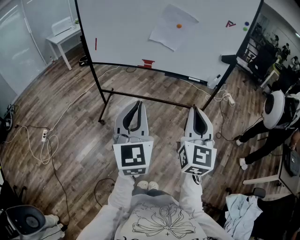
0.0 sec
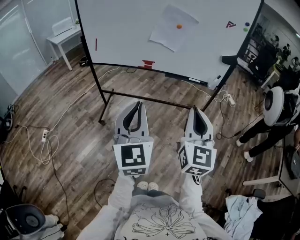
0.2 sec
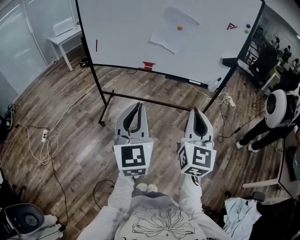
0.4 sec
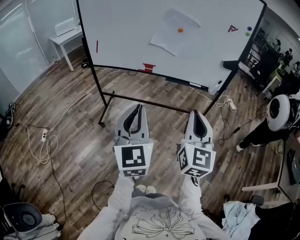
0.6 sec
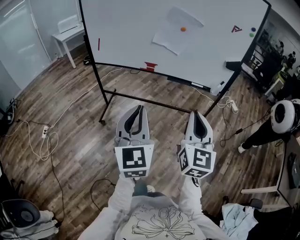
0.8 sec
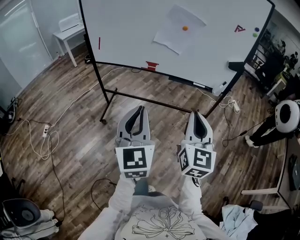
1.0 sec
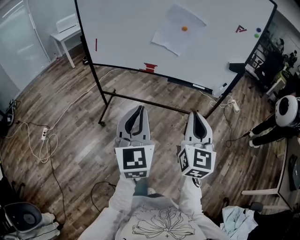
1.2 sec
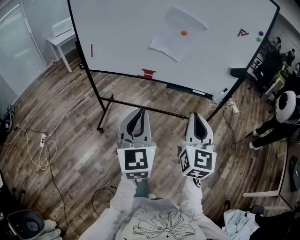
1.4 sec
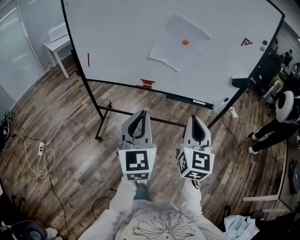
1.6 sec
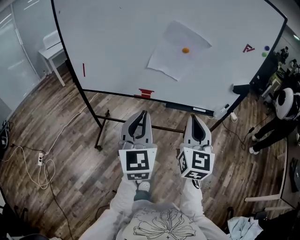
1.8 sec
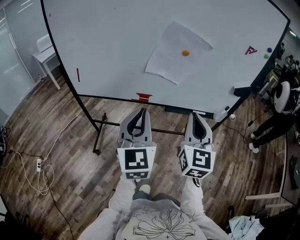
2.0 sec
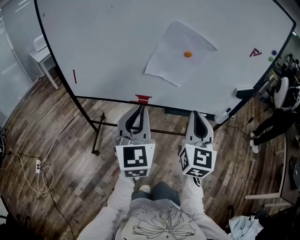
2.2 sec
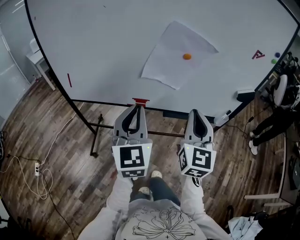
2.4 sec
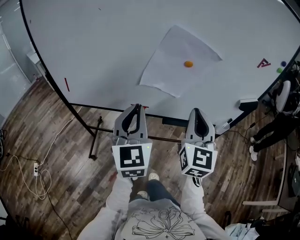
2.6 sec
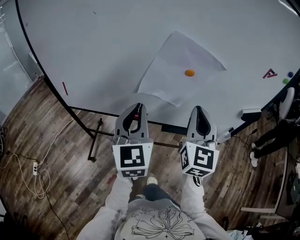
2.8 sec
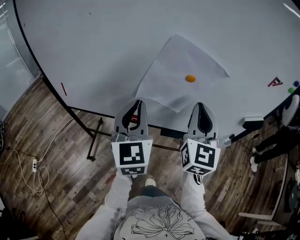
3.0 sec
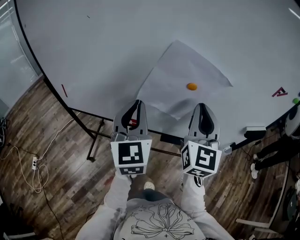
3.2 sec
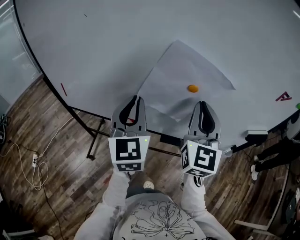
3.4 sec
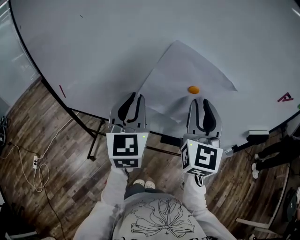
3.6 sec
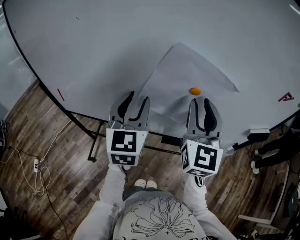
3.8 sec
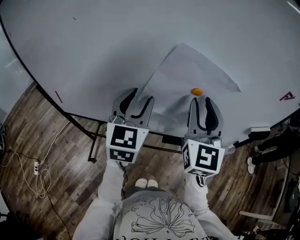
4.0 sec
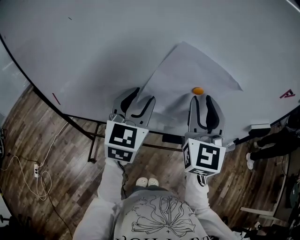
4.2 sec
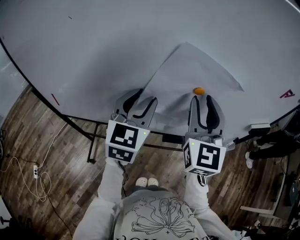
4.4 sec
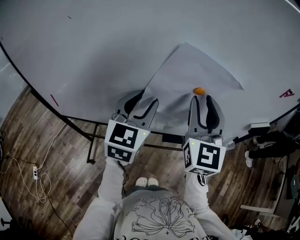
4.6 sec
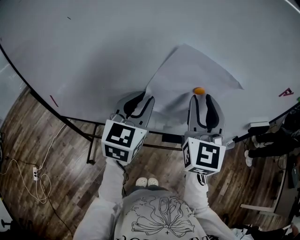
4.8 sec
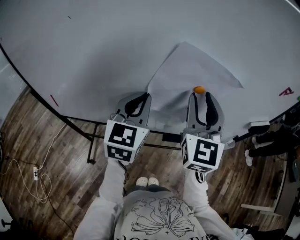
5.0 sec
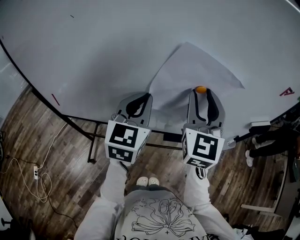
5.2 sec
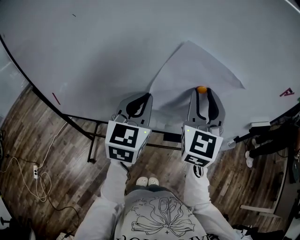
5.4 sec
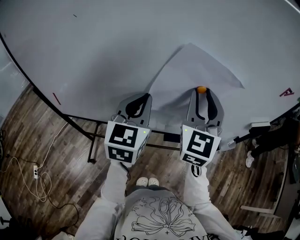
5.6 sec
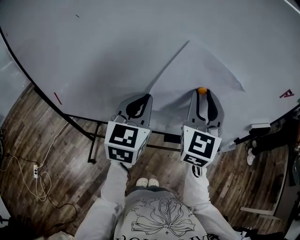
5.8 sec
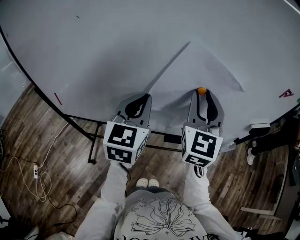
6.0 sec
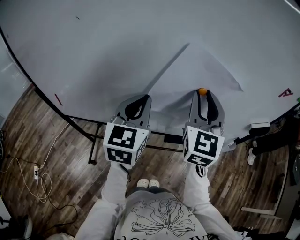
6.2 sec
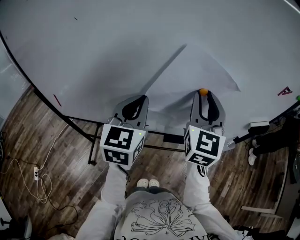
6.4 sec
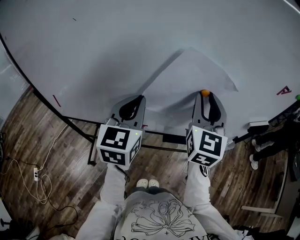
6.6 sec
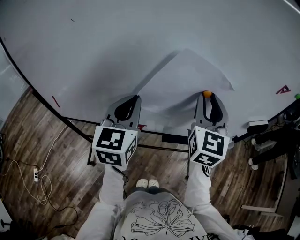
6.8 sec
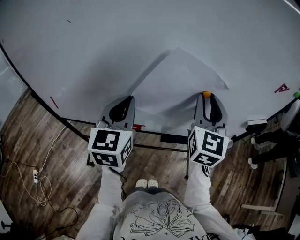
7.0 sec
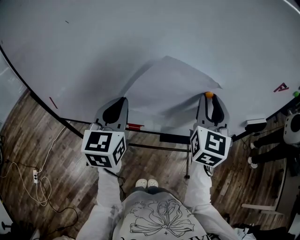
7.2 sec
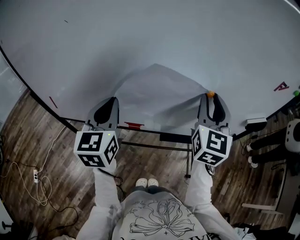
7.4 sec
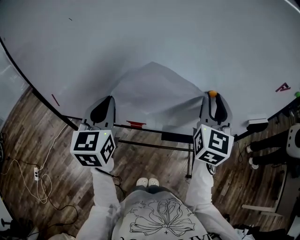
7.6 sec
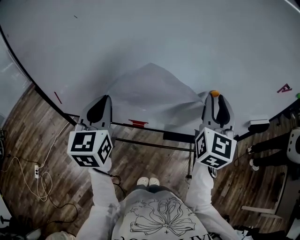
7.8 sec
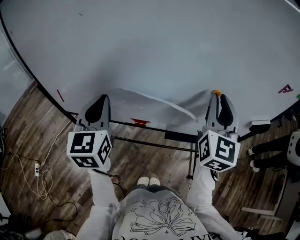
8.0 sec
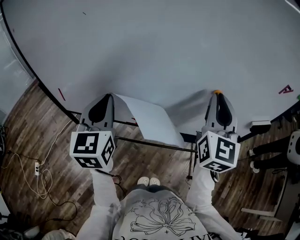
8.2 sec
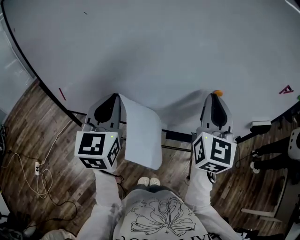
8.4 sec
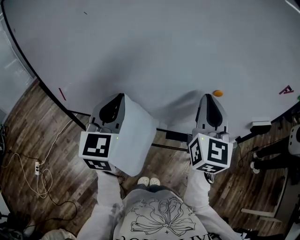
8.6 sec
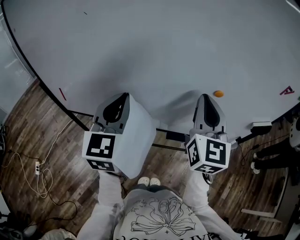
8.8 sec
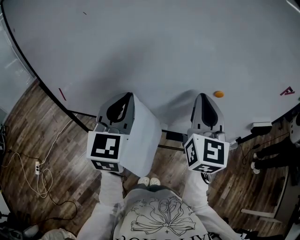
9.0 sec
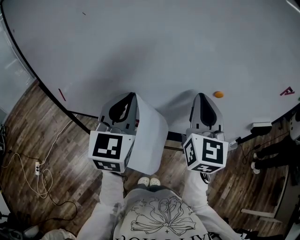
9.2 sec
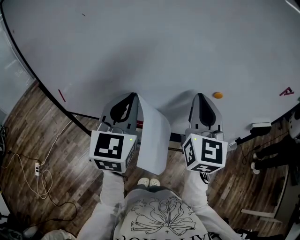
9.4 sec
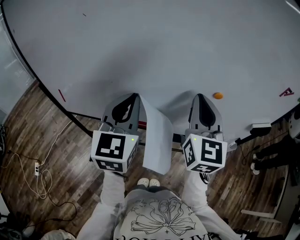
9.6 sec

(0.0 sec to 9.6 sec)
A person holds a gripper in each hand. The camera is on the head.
0.0 sec - 1.6 sec: Both grippers travel together forward, roughly 20 cm.
1.6 sec - 3.2 sec: Both grippers move forward, some 35 cm.
3.2 sec - 4.8 sec: The left gripper shifts some 10 cm forward, turns by roughly 30 degrees, and opens, then closes again. The right gripper changes place by roughly 5 cm, and opens its fingers.
4.8 sec - 6.4 sec: The grippers move only a little.
6.4 sec - 8.0 sec: The left gripper is displaced to the left by roughly 10 cm. The right gripper shifts by roughly 5 cm.
8.0 sec - 9.6 sec: The left gripper travels to the right by some 10 cm; the right gripper is displaced to the left by some 5 cm.

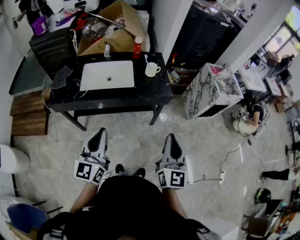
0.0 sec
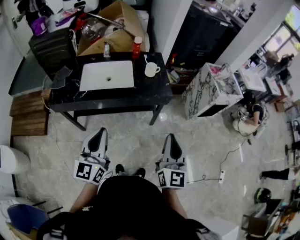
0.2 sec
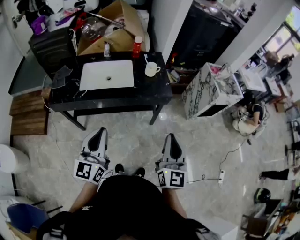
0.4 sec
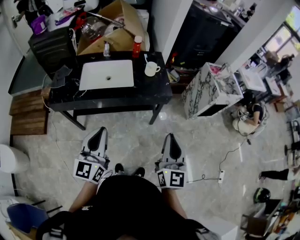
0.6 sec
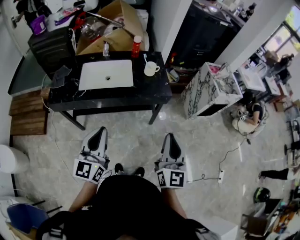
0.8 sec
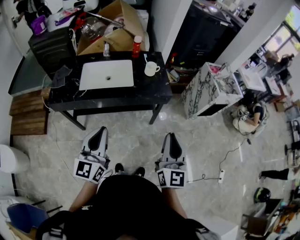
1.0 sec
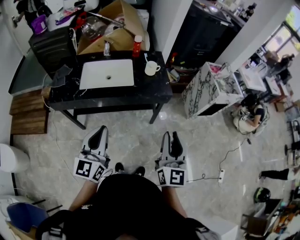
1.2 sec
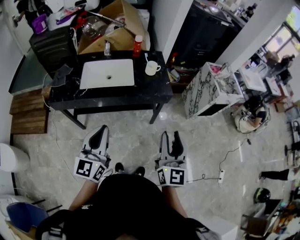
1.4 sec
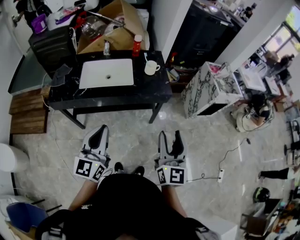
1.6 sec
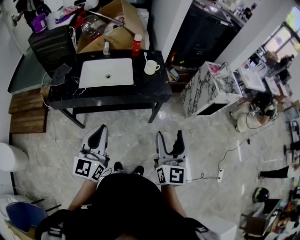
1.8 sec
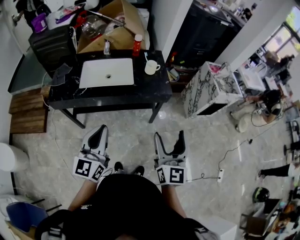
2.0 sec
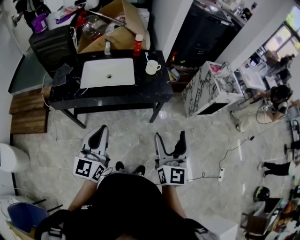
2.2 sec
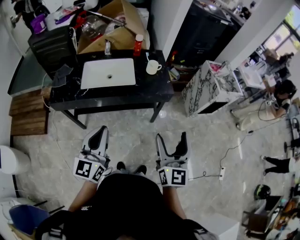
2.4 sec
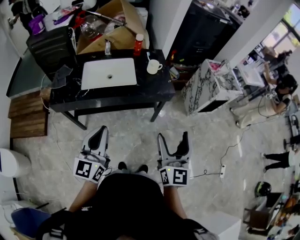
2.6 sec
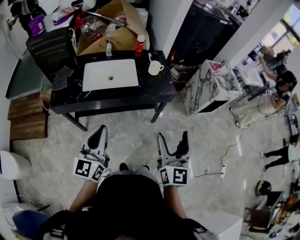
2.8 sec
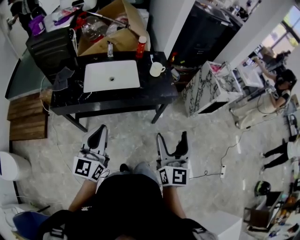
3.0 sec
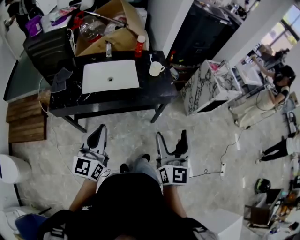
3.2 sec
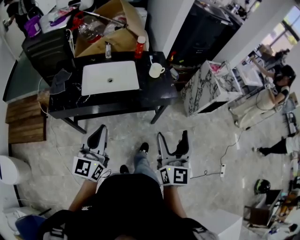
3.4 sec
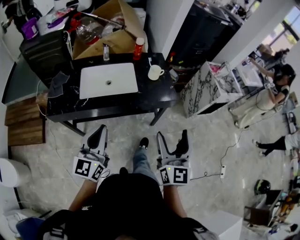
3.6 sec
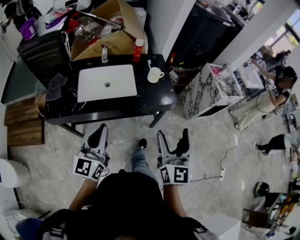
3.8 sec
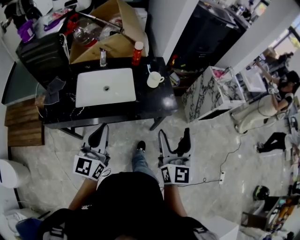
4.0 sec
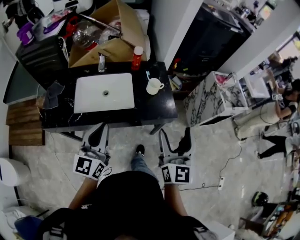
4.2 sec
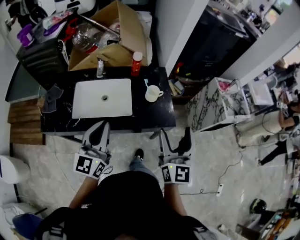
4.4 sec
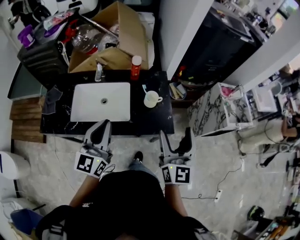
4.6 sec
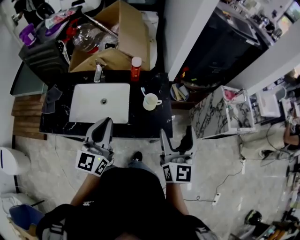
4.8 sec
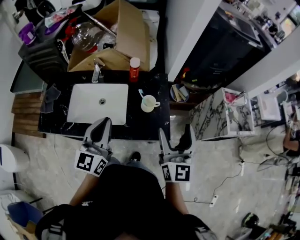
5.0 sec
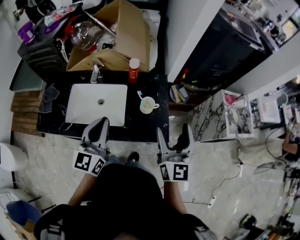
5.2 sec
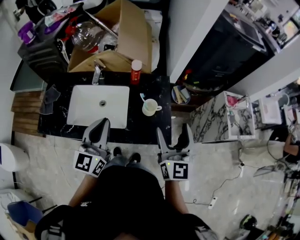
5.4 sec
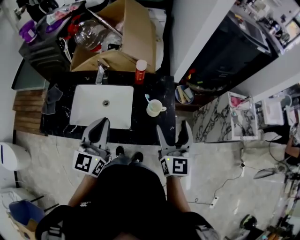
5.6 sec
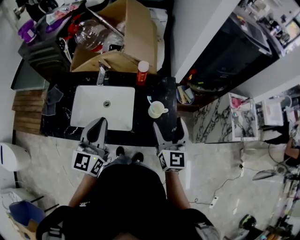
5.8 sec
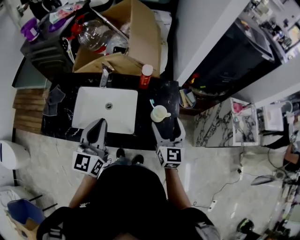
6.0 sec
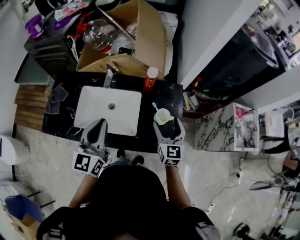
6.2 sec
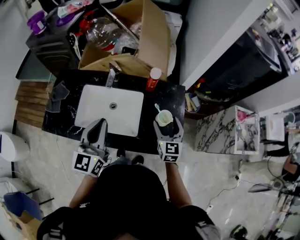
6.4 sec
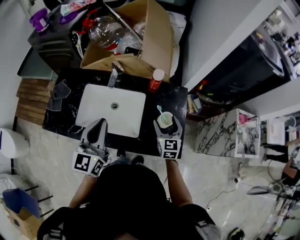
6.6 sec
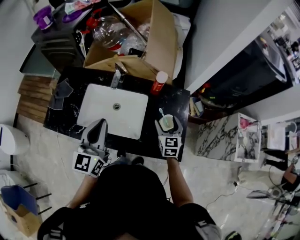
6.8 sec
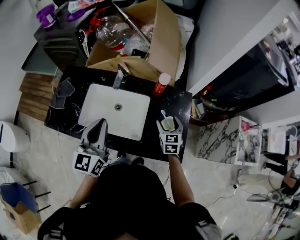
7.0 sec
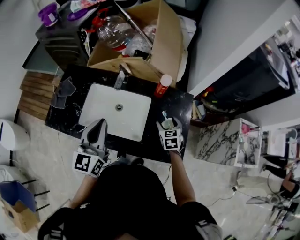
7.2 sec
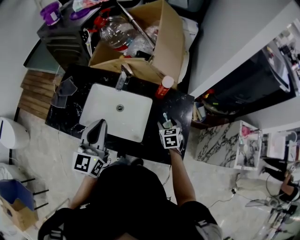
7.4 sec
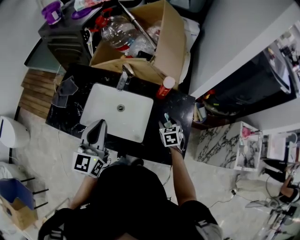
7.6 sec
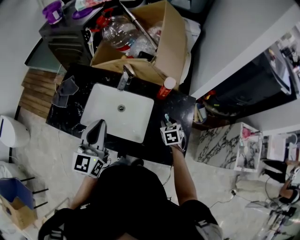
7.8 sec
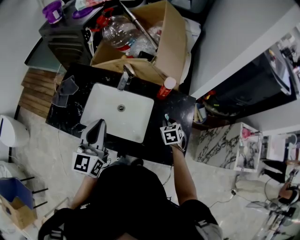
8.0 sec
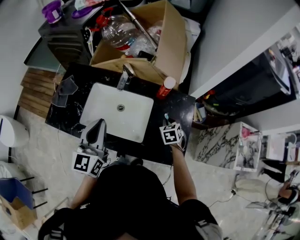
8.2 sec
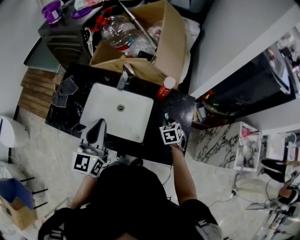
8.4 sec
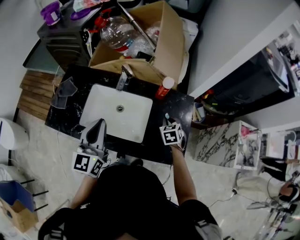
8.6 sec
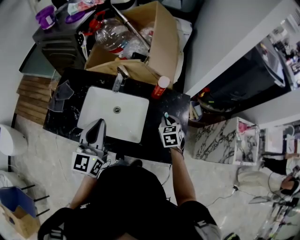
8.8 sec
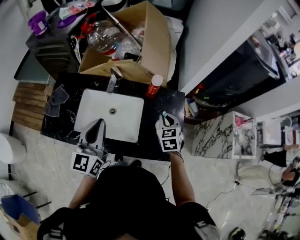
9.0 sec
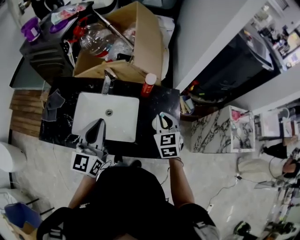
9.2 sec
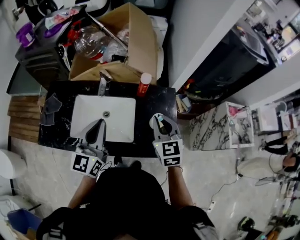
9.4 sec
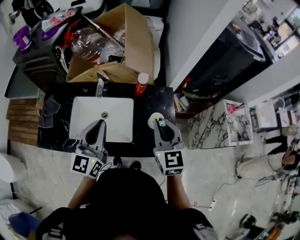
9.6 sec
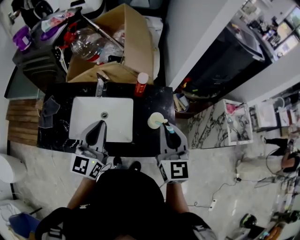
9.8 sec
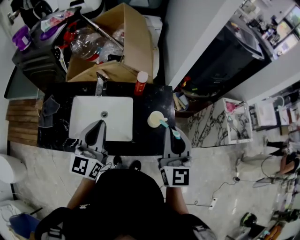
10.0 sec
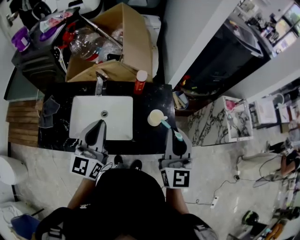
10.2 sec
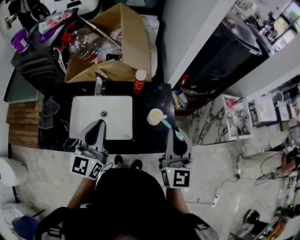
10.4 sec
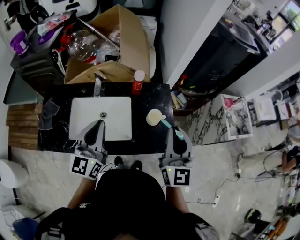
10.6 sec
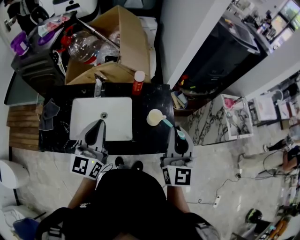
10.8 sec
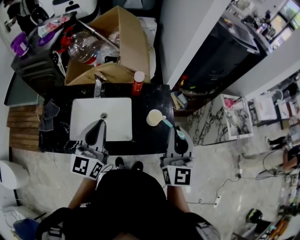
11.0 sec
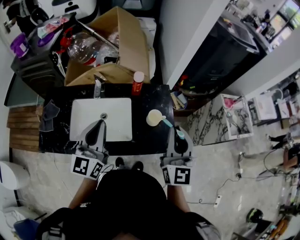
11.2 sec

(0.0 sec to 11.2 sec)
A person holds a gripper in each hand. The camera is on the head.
0.0 sec - 1.6 sec: The right gripper opens its fingers.
1.6 sec - 3.2 sec: The two grippers go some 10 cm to the left. The right gripper opens.
3.2 sec - 4.8 sec: The grippers both shift forward by roughly 35 cm.
4.8 sec - 6.4 sec: The left gripper shifts roughly 10 cm to the left and forward. Meanwhile the right gripper shifts roughly 25 cm forward, downward and to the left, and swivels about 30 degrees.
6.4 sec - 8.0 sec: The right gripper shifts some 15 cm downward and forward, tilts its fingers some 40 degrees downward, and closes. Meanwhile the left gripper changes place by roughly 5 cm.
8.0 sec - 9.6 sec: The right gripper is displaced upward by some 25 cm, and angles its fingers upward, by about 40 degrees; the left gripper goes about 5 cm to the right.
9.6 sec - 11.2 sec: The right gripper travels to the right and backward by roughly 10 cm, and changes its angle by about 20 degrees.

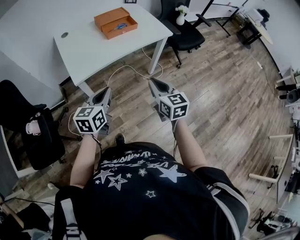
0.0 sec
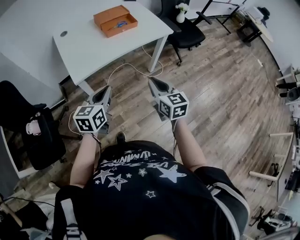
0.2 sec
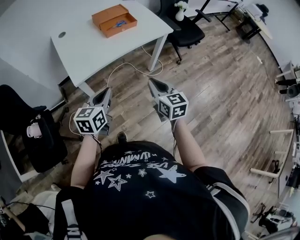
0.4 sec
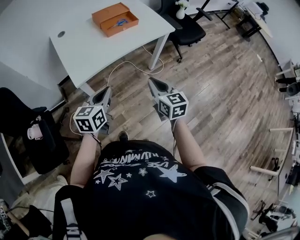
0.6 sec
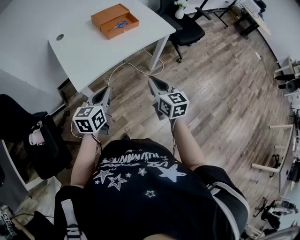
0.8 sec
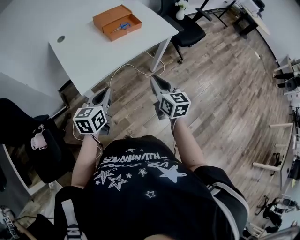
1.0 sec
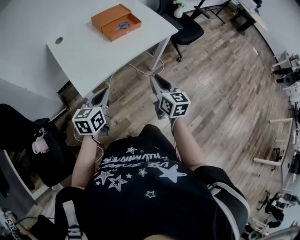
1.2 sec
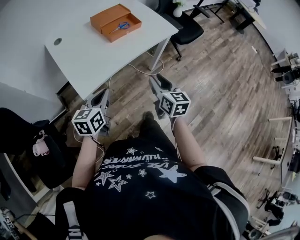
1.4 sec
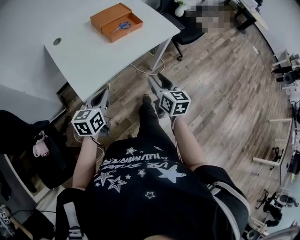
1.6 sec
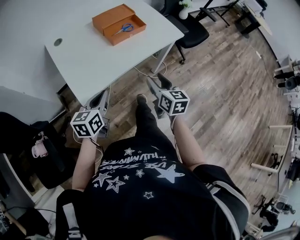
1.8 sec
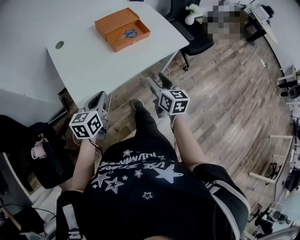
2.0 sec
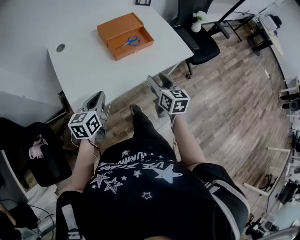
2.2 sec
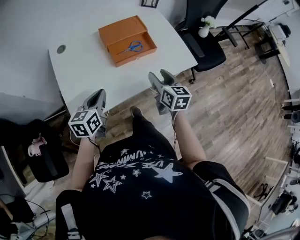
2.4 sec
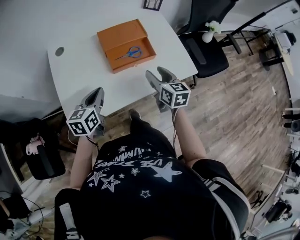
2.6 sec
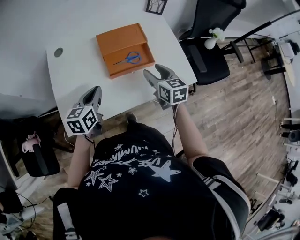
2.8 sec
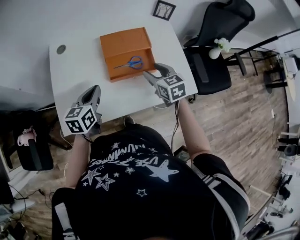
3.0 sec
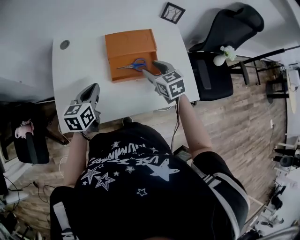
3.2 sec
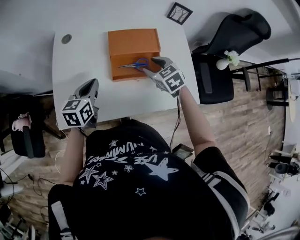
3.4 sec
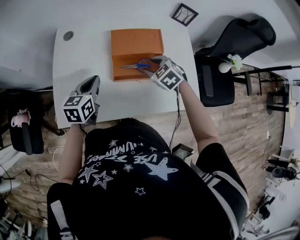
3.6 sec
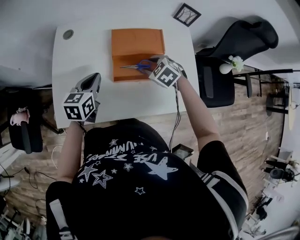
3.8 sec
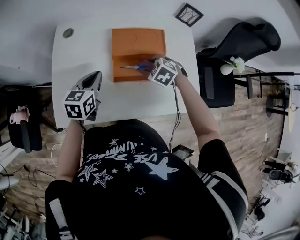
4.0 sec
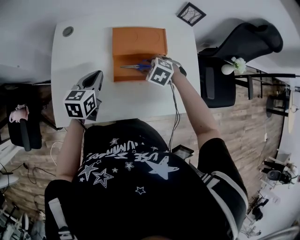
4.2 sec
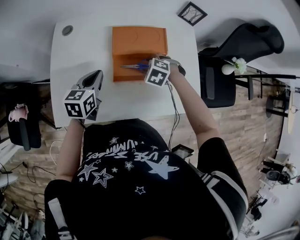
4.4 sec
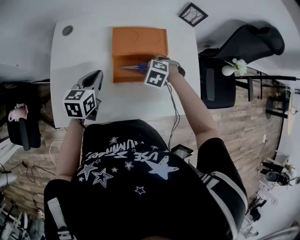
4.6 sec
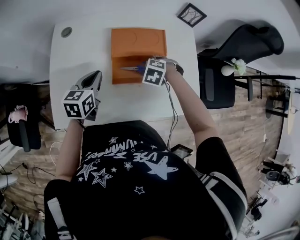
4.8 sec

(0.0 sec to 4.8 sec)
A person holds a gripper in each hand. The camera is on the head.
0.0 sec - 1.6 sec: Both grippers move forward and to the left, about 20 cm. The right gripper opens up.
1.6 sec - 3.2 sec: The left gripper ends up about 35 cm from where it was, and rotates approximately 30 degrees. The right gripper ends up roughly 50 cm from where it was, and turns by roughly 50 degrees.
3.2 sec - 4.8 sec: The right gripper travels downward by about 10 cm, and tips its fingers downward by approximately 40 degrees, while the left gripper changes place by some 10 cm.
